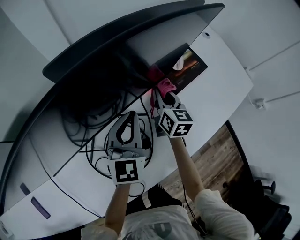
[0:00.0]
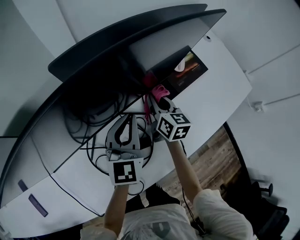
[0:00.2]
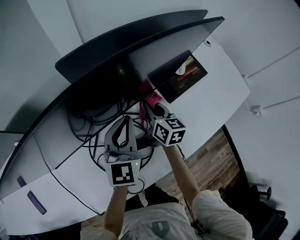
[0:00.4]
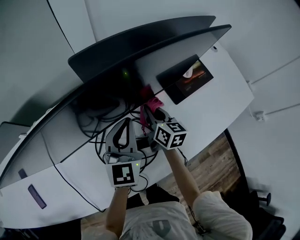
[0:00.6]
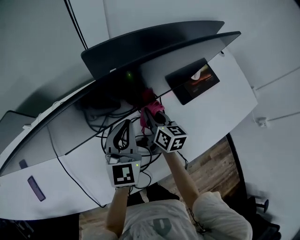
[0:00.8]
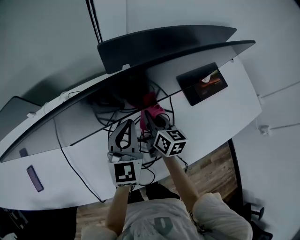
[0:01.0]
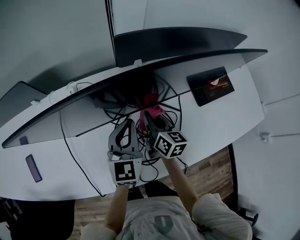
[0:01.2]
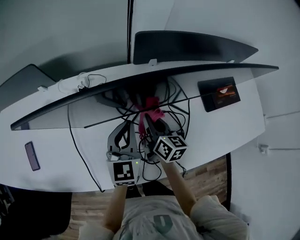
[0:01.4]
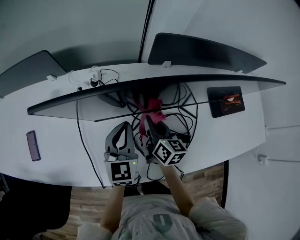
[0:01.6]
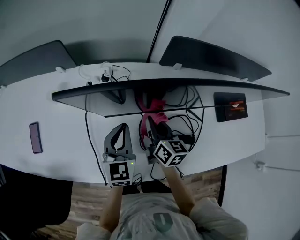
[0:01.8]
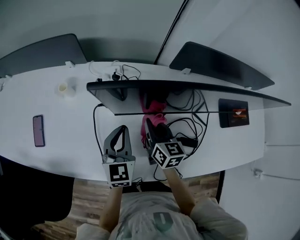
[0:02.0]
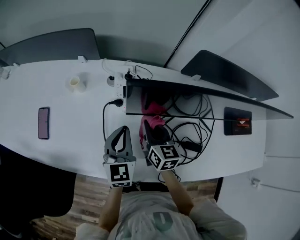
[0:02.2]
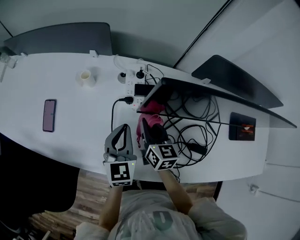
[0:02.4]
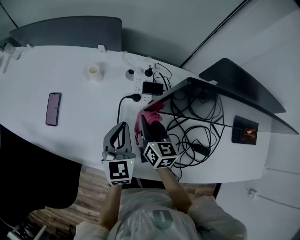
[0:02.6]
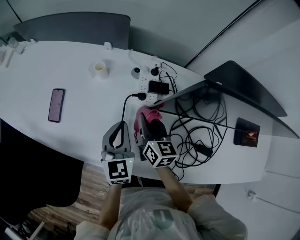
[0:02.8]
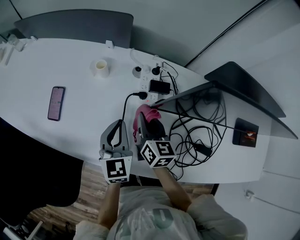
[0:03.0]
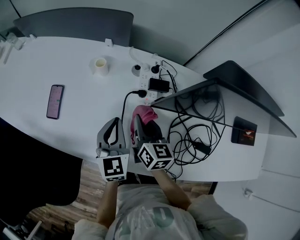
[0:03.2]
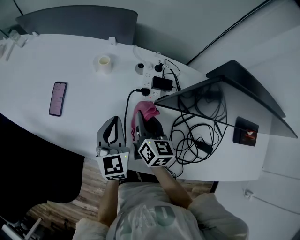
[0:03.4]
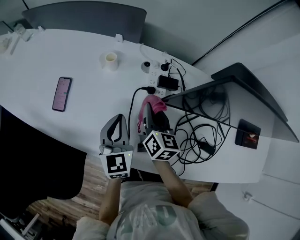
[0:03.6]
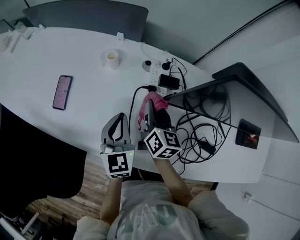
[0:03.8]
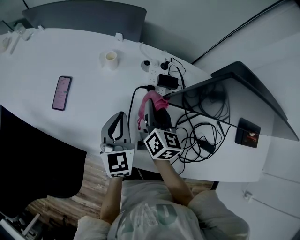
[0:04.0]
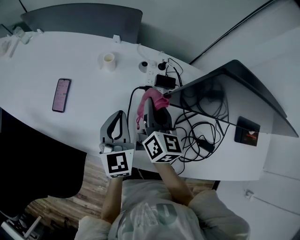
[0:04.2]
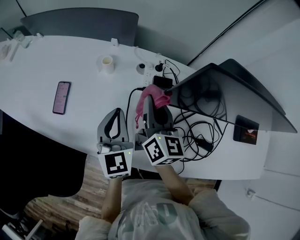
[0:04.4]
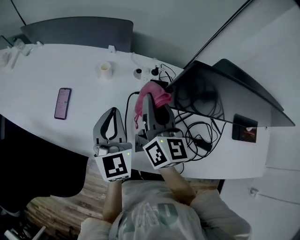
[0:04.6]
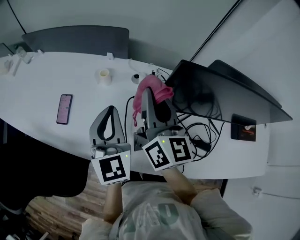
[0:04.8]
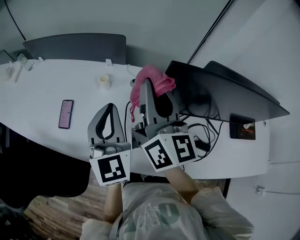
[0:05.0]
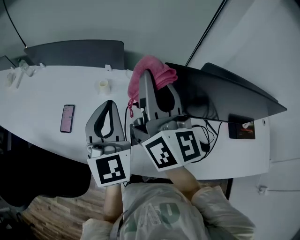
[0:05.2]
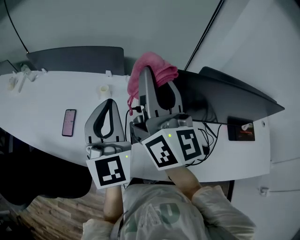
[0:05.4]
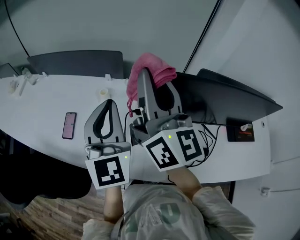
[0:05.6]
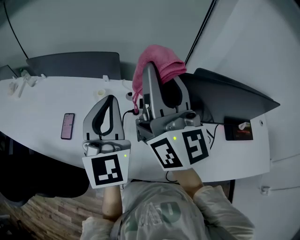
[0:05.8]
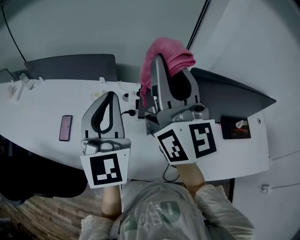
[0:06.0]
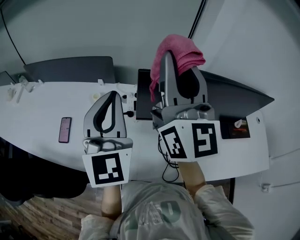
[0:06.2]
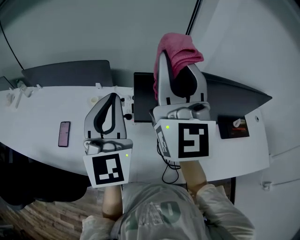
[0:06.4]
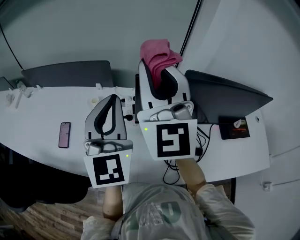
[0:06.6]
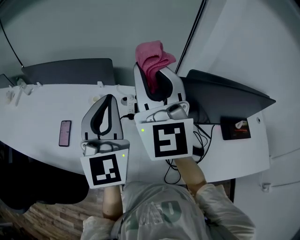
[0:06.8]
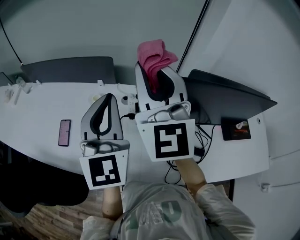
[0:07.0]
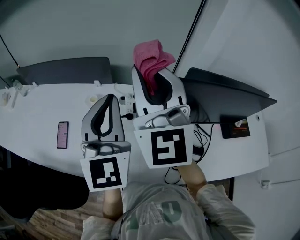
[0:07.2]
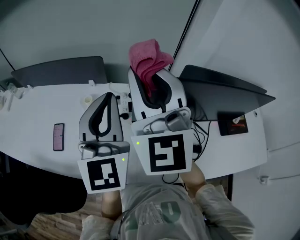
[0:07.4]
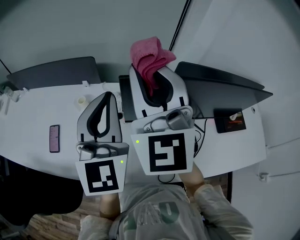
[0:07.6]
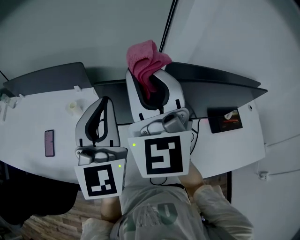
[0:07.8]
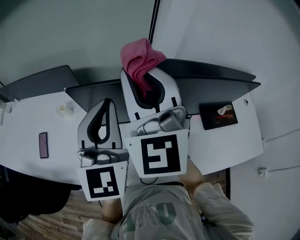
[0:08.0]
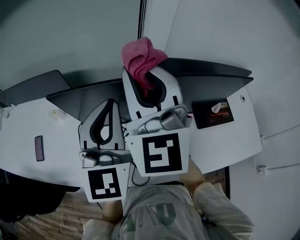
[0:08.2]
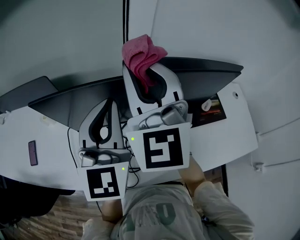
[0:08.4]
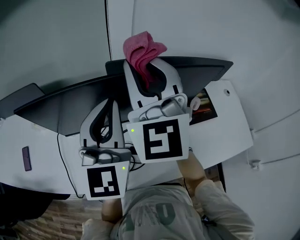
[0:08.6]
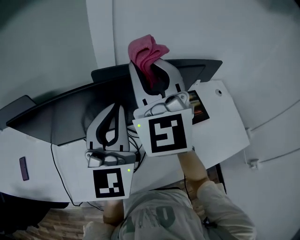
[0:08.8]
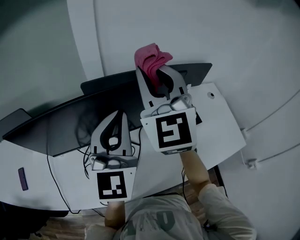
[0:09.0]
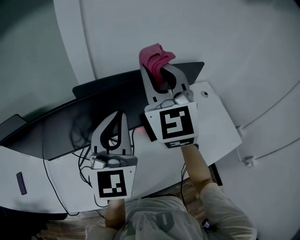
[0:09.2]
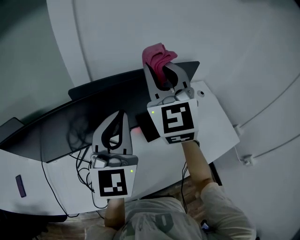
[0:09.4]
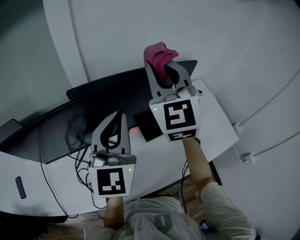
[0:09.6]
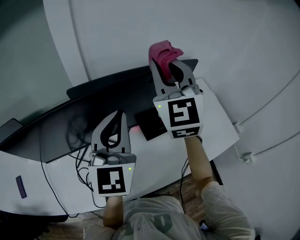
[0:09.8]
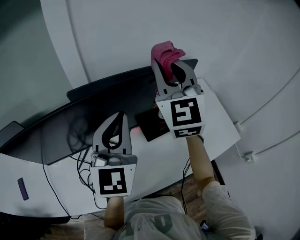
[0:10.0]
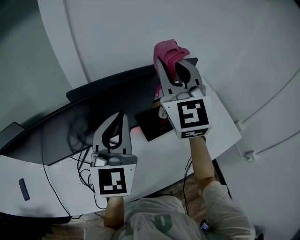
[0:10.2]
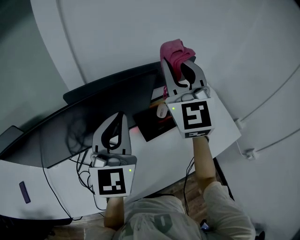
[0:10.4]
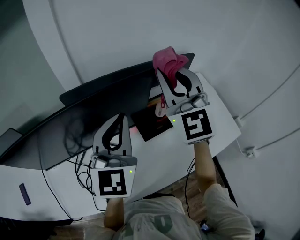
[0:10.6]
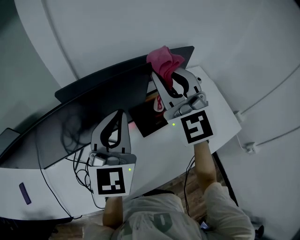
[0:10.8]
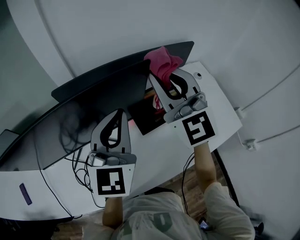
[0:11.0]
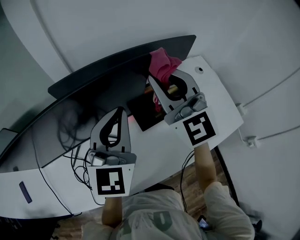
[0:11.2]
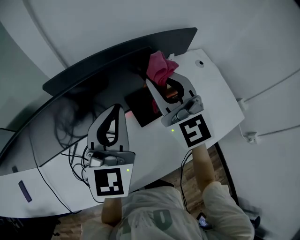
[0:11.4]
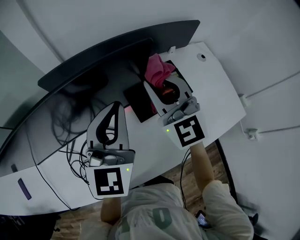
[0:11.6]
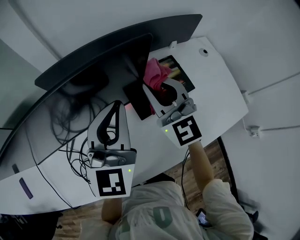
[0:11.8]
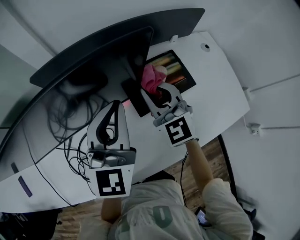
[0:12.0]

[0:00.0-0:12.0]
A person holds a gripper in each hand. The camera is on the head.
0.0 to 1.6 s: The left gripper moves about 30 cm, and swivels about 30 degrees. Meanwhile the right gripper ends up roughly 35 cm from where it was, and swivels about 30 degrees.
1.6 to 3.0 s: Both grippers move to the left, some 25 cm. The left gripper swivels some 20 degrees. Meanwhile the right gripper turns by approximately 20 degrees.
3.0 to 4.4 s: The right gripper is displaced upward by about 10 cm. Meanwhile the left gripper is displaced upward by about 5 cm.
4.4 to 6.0 s: The two grippers go approximately 30 cm upward. The left gripper swivels roughly 20 degrees; the right gripper tips its fingers upward by approximately 30 degrees.
6.0 to 7.6 s: The left gripper shifts by about 5 cm. The right gripper moves roughly 5 cm to the left and comes back, and turns by some 40 degrees.
7.6 to 9.0 s: The two grippers travel together, to the right, about 40 cm. The left gripper swivels approximately 20 degrees.
9.0 to 10.4 s: The right gripper travels to the right by approximately 15 cm. The left gripper travels to the right by approximately 5 cm.
10.4 to 12.0 s: The right gripper shifts some 30 cm downward, and rotates approximately 30 degrees; the left gripper goes some 10 cm downward.

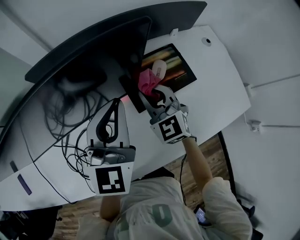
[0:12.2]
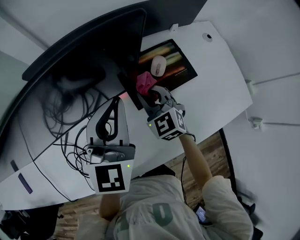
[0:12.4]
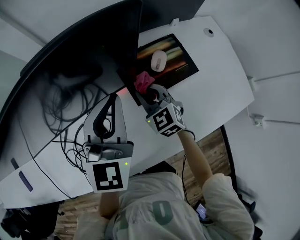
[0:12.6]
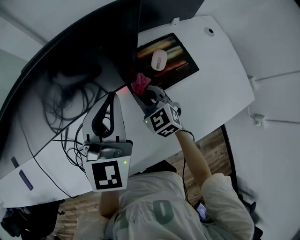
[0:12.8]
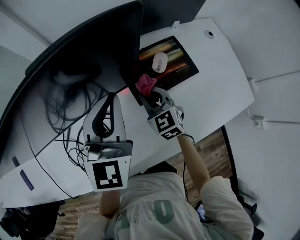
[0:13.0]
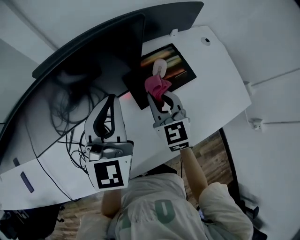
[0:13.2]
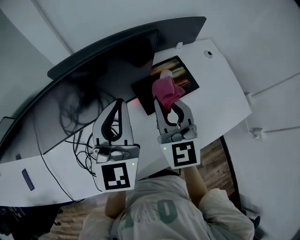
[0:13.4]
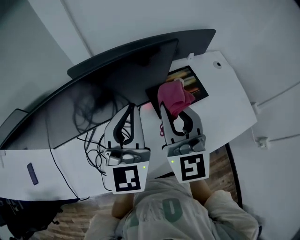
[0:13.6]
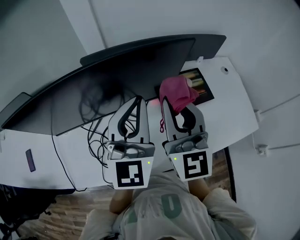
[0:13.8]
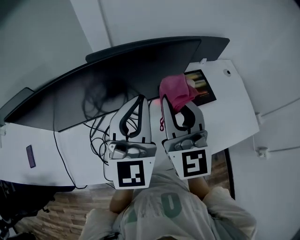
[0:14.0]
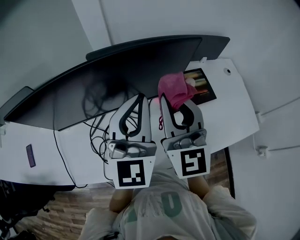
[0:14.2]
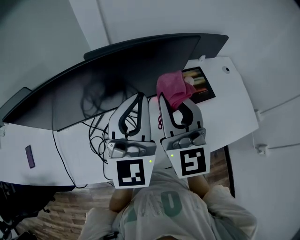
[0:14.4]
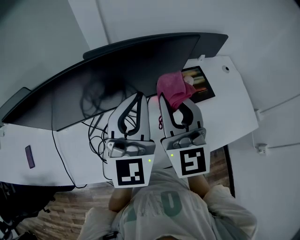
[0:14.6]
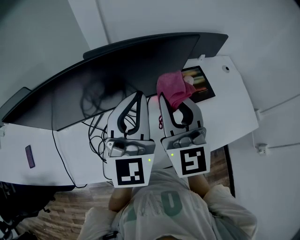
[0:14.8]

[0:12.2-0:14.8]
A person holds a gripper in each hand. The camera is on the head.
12.2 to 13.4 s: The left gripper goes about 5 cm upward; the right gripper heads upward and backward, covering roughly 15 cm, and swivels approximately 30 degrees.
13.4 to 14.8 s: The left gripper heads to the left, covering roughly 5 cm, while the right gripper is displaced to the left and upward by some 10 cm.

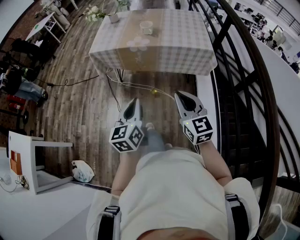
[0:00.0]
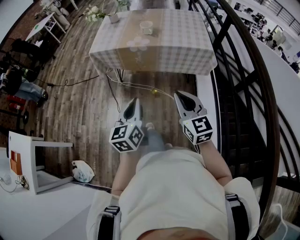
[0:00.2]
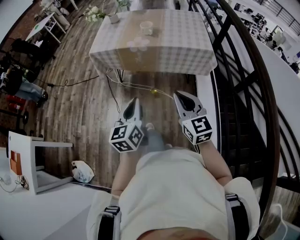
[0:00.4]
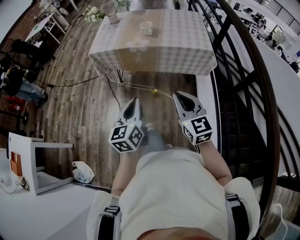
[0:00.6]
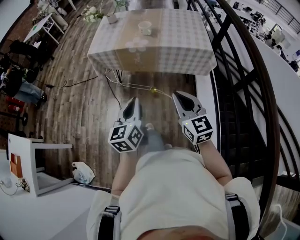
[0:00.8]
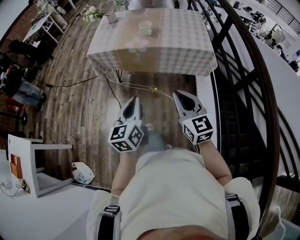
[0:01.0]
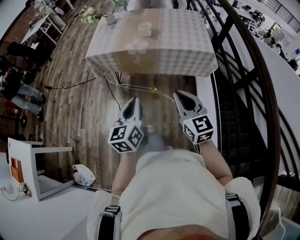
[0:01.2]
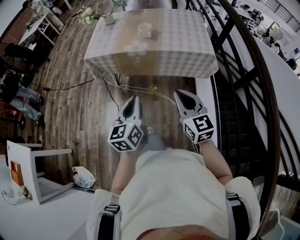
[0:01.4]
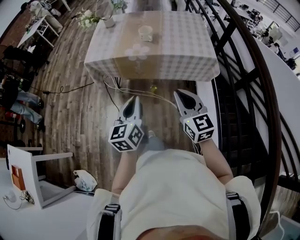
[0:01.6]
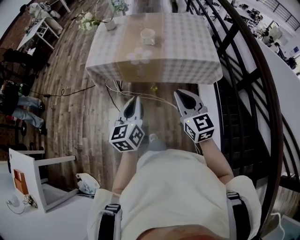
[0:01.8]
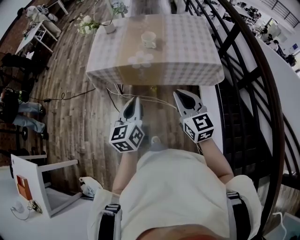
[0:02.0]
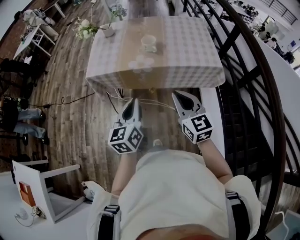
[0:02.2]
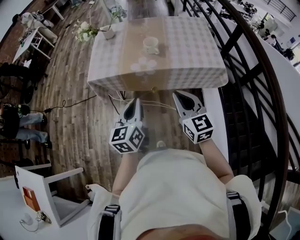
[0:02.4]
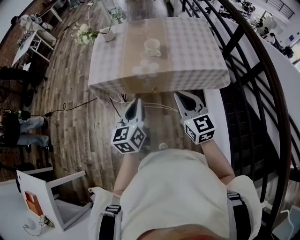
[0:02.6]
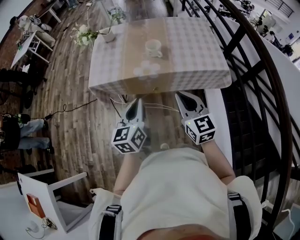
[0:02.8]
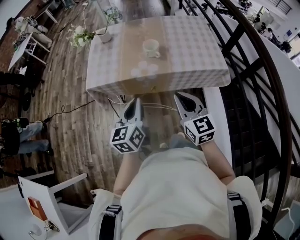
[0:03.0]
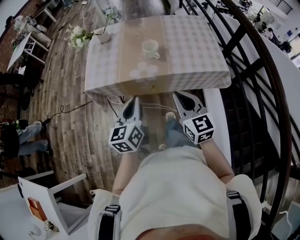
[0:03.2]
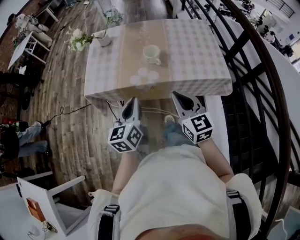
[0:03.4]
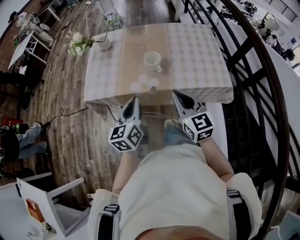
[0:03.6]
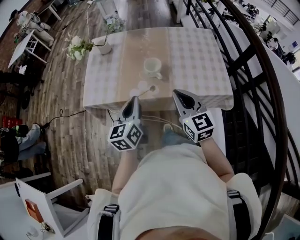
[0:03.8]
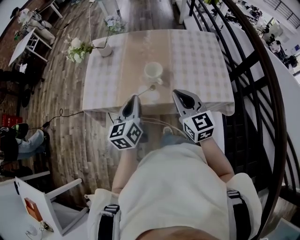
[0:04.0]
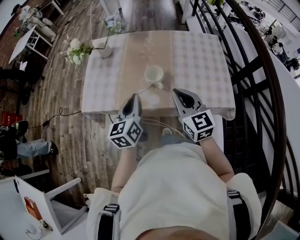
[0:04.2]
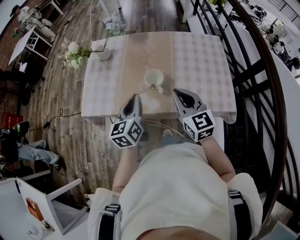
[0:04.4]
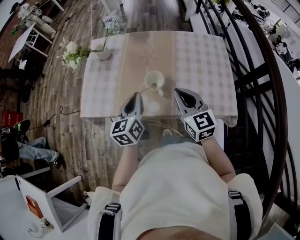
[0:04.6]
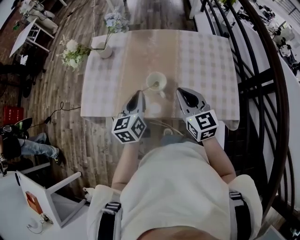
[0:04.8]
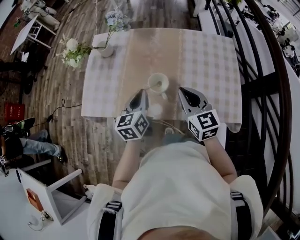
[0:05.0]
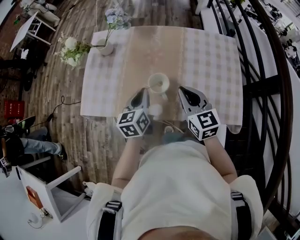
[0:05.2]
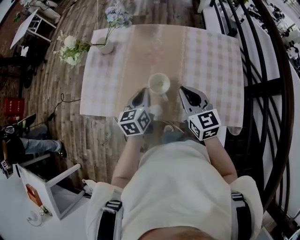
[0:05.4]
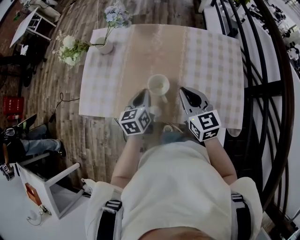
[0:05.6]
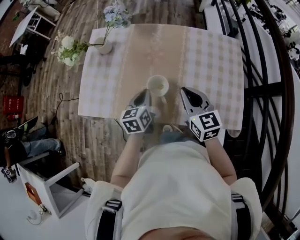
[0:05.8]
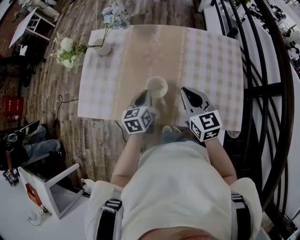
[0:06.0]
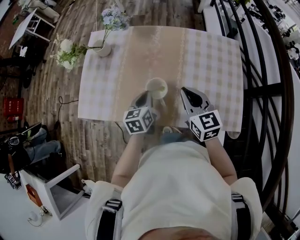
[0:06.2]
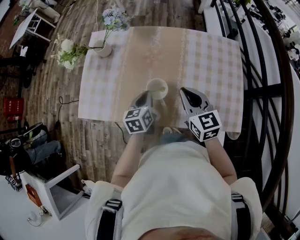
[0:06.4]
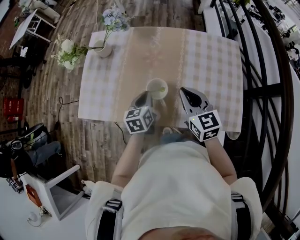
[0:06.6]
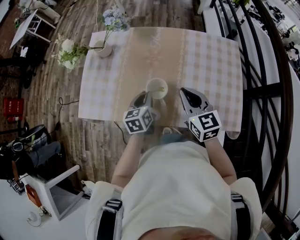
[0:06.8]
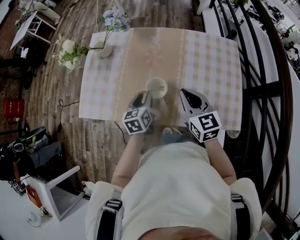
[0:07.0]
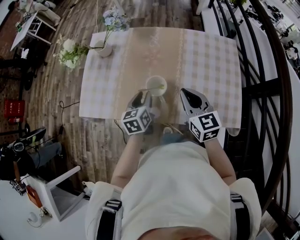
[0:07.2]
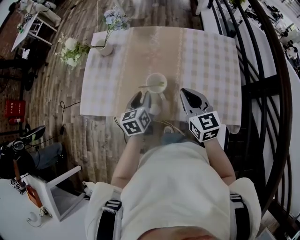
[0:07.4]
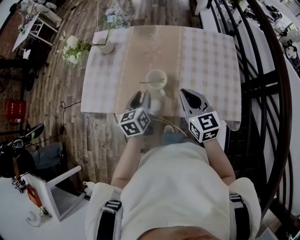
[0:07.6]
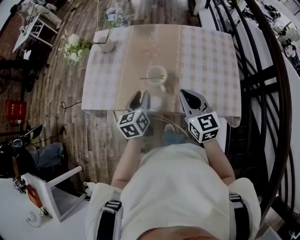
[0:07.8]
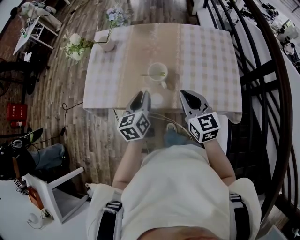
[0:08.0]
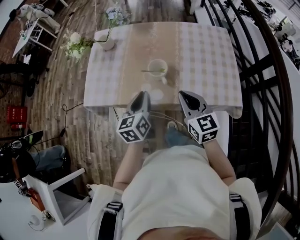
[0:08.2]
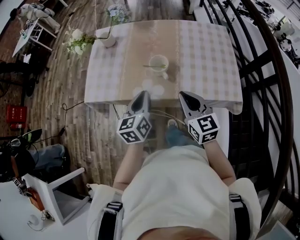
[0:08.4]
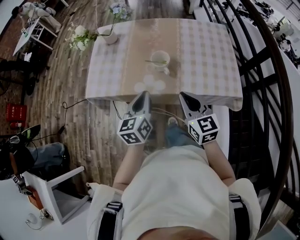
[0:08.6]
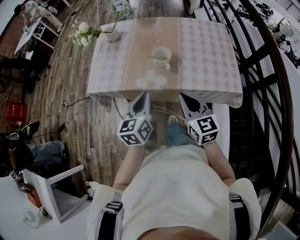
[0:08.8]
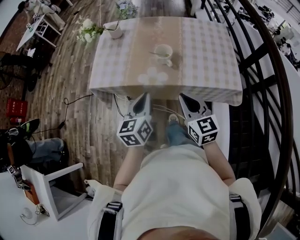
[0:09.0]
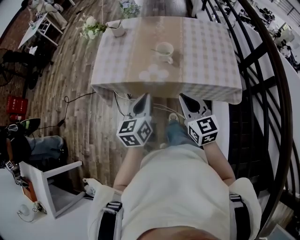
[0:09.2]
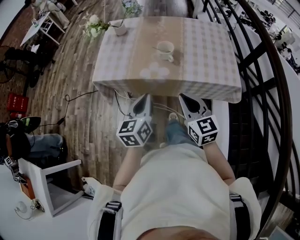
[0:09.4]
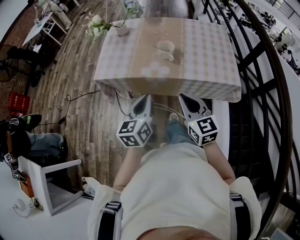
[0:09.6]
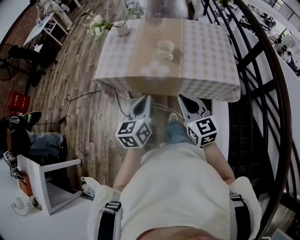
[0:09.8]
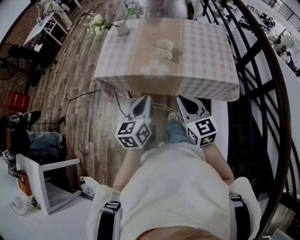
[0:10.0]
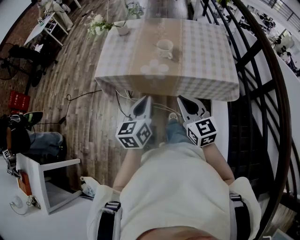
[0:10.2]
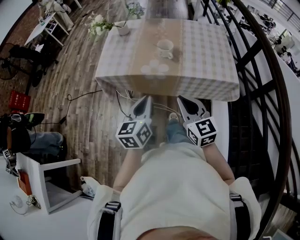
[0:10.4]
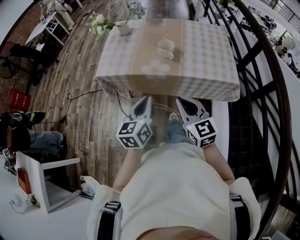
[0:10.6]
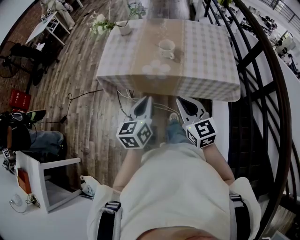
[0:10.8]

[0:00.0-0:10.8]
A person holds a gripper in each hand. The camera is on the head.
0.0 to 1.6 s: Both grippers move forward, about 10 cm.
1.6 to 3.0 s: The left gripper shifts about 15 cm forward, while the right gripper goes roughly 15 cm forward and to the left.
3.0 to 4.6 s: Both grippers move forward, about 25 cm.
4.6 to 6.2 s: The right gripper heads forward and downward, covering some 10 cm. The left gripper travels downward and forward by some 15 cm.
6.2 to 7.8 s: The left gripper travels backward and upward by roughly 10 cm, and opens. The right gripper travels backward by some 10 cm.
7.8 to 9.2 s: The two grippers go approximately 20 cm backward. The left gripper closes its fingers.
9.2 to 10.8 s: Both grippers move backward, about 10 cm.
